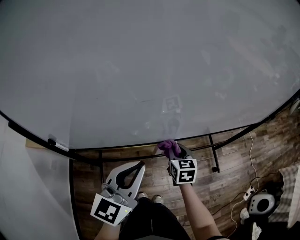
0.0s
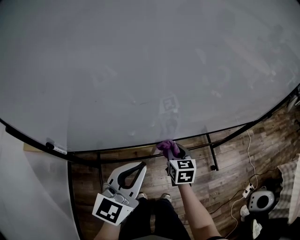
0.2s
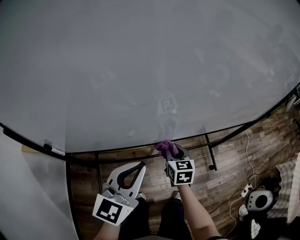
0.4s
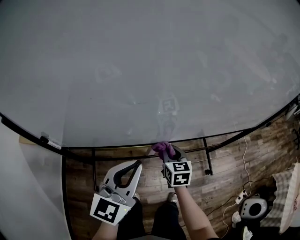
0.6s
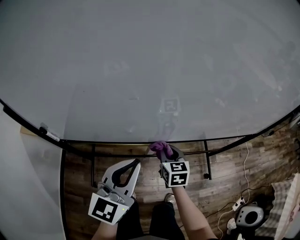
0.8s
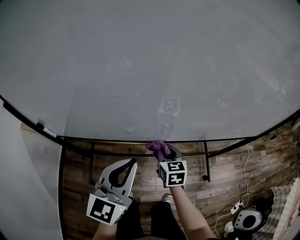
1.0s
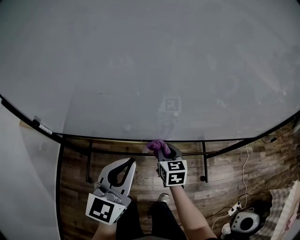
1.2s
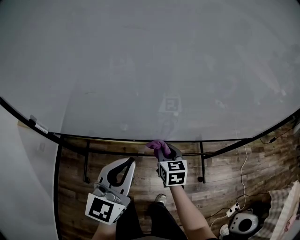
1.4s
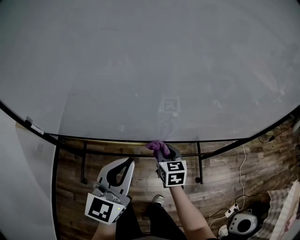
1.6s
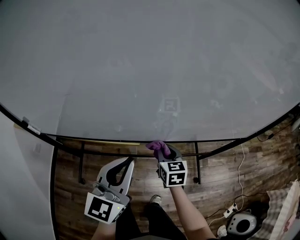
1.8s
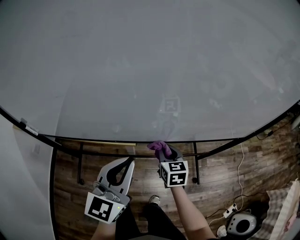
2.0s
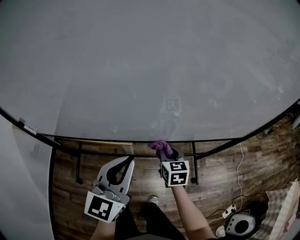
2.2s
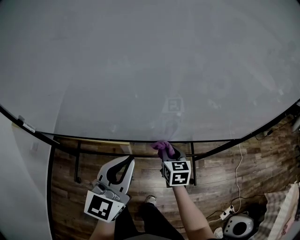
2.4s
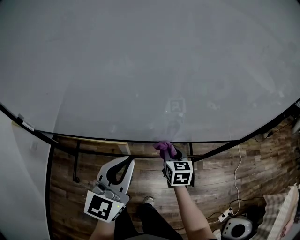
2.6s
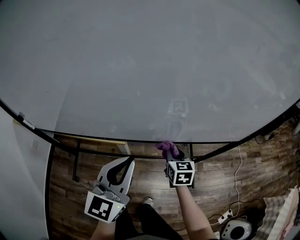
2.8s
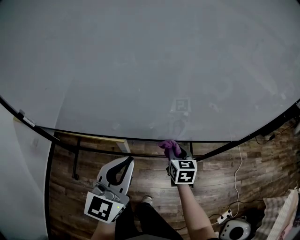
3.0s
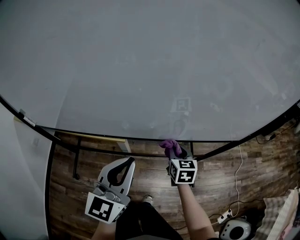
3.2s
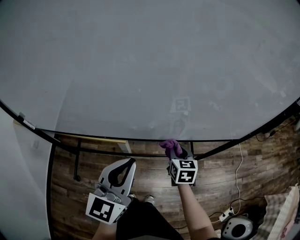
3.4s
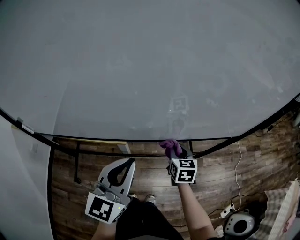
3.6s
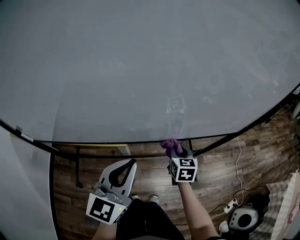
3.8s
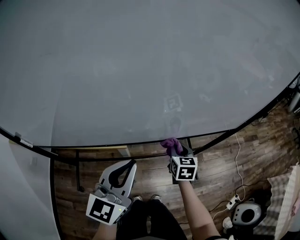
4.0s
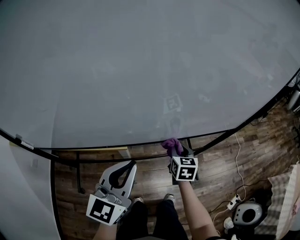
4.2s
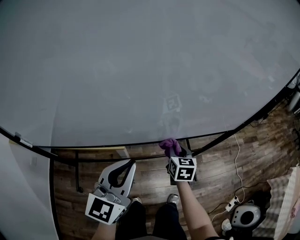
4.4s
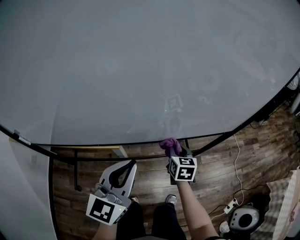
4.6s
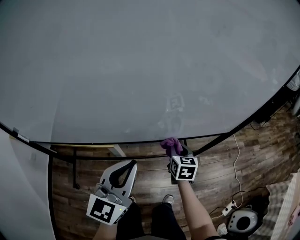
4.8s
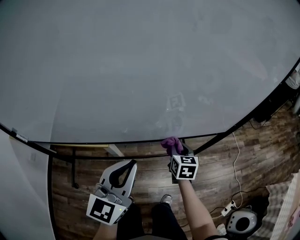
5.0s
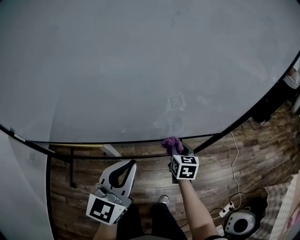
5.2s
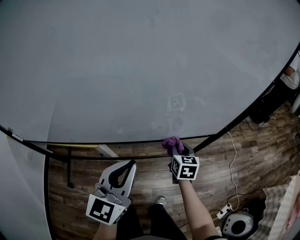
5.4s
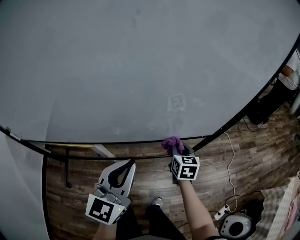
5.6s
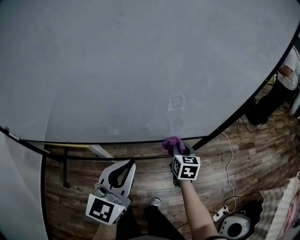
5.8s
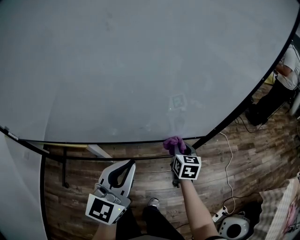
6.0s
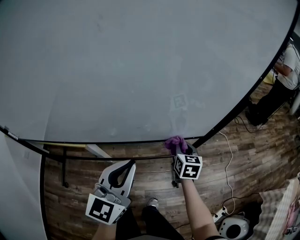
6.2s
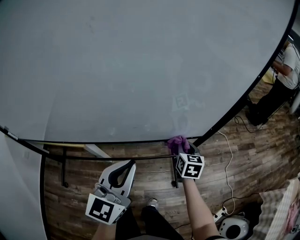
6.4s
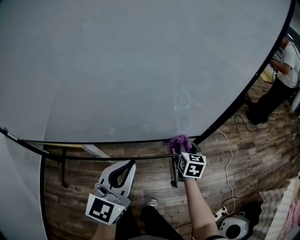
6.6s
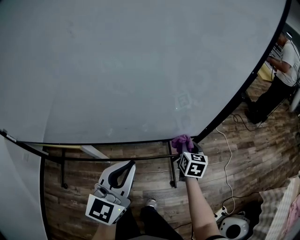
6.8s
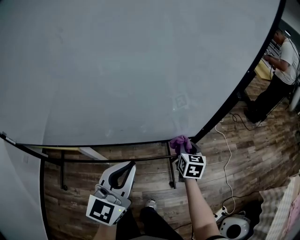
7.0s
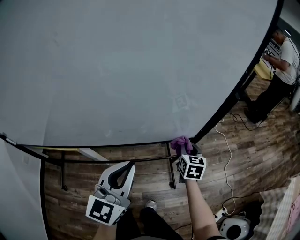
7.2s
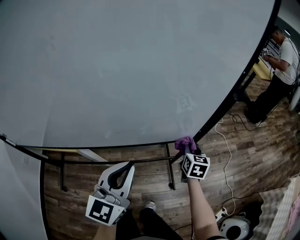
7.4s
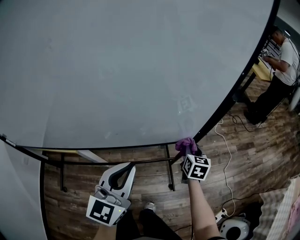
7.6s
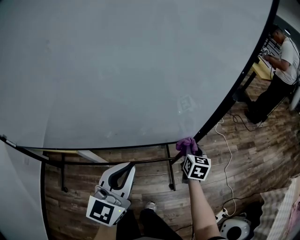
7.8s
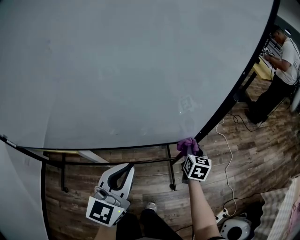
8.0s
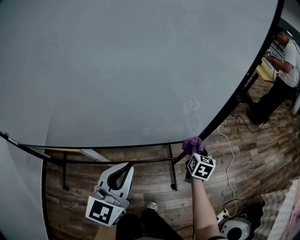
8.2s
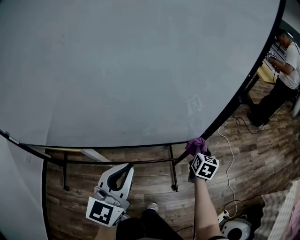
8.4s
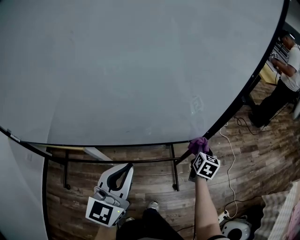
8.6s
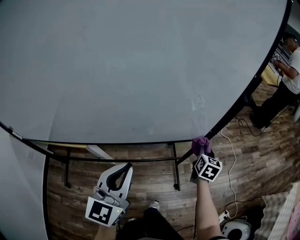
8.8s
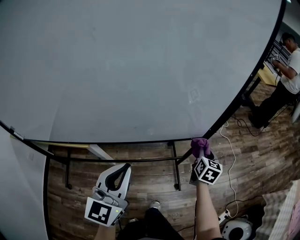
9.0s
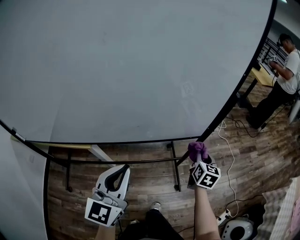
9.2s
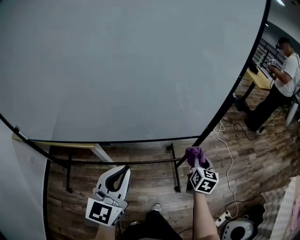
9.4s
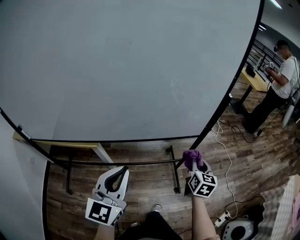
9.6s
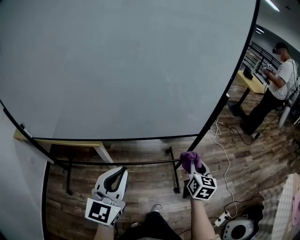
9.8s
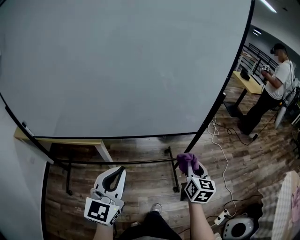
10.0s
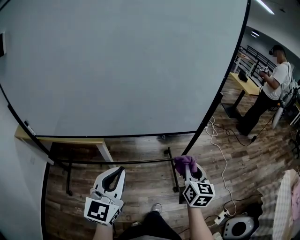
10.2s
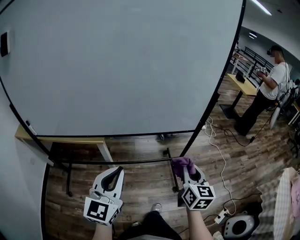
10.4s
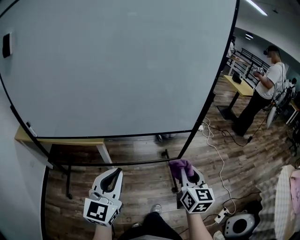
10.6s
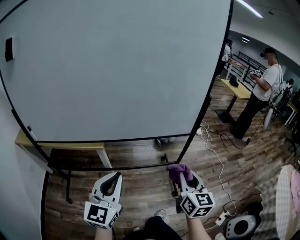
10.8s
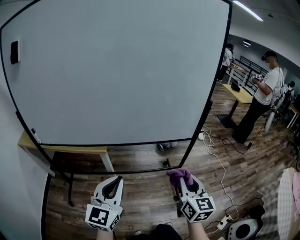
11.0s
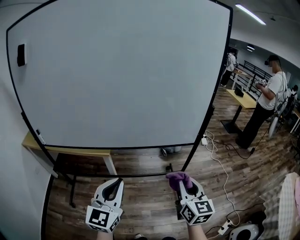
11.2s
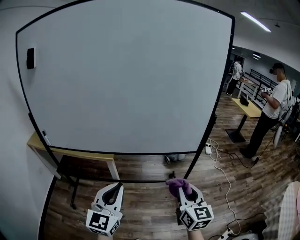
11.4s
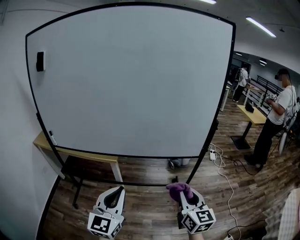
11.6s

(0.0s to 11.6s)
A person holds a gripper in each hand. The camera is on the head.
0.0s - 1.4s: The left gripper goes approximately 5 cm to the right.
1.4s - 2.8s: The grippers both shift to the right by roughly 20 cm.
2.8s - 4.4s: The grippers make only small movements.
4.4s - 5.8s: The two grippers go about 20 cm to the right.
5.8s - 7.2s: The two grippers go some 10 cm to the right.
7.2s - 8.8s: The right gripper travels to the right by some 5 cm.
8.8s - 10.2s: The right gripper shifts about 30 cm backward and upward, and turns by approximately 20 degrees. Meanwhile the left gripper heads backward, covering about 20 cm.
10.2s - 11.6s: The right gripper is displaced backward and upward by some 15 cm, and changes its angle by roughly 20 degrees. Meanwhile the left gripper travels backward by about 10 cm.

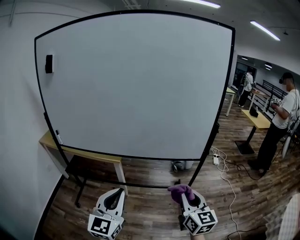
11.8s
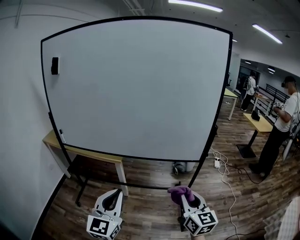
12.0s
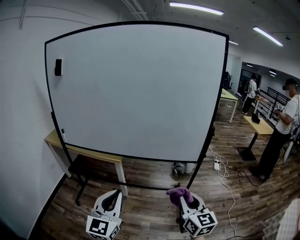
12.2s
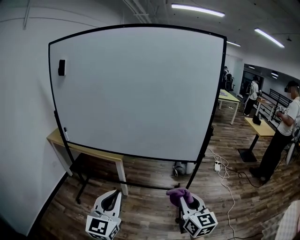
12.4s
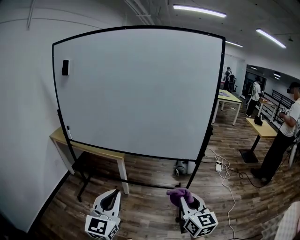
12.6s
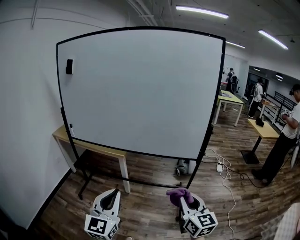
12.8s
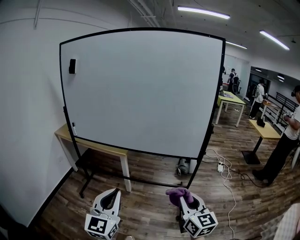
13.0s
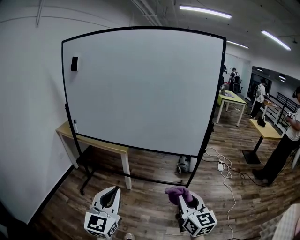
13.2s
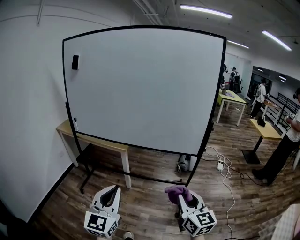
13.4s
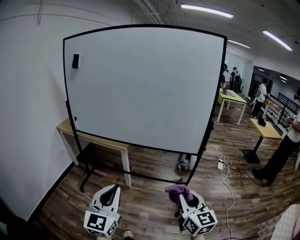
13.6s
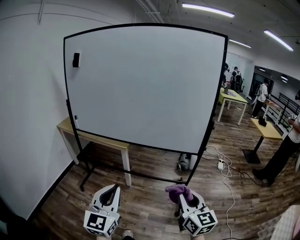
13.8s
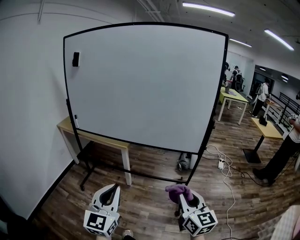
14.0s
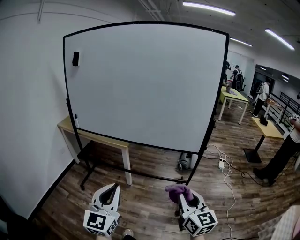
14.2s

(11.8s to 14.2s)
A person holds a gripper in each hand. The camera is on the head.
11.8s - 13.0s: Both grippers travel together backward, approximately 15 cm.
13.0s - 14.2s: The grippers stay close to where they were, moving slightly.

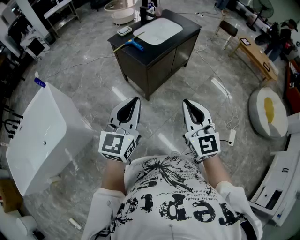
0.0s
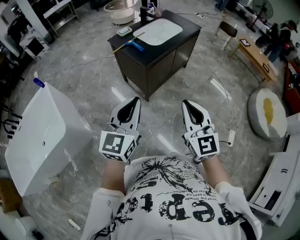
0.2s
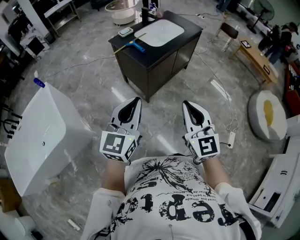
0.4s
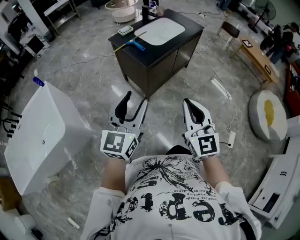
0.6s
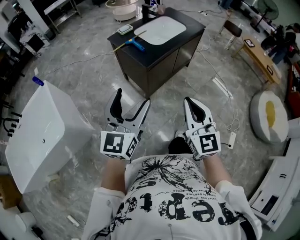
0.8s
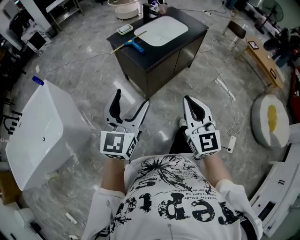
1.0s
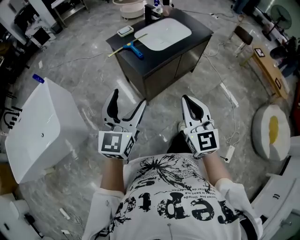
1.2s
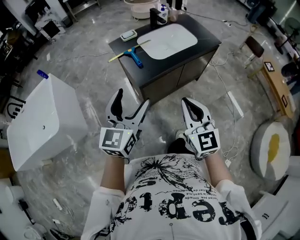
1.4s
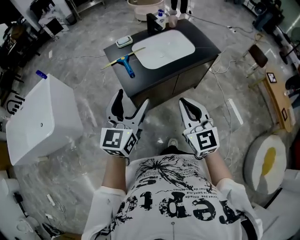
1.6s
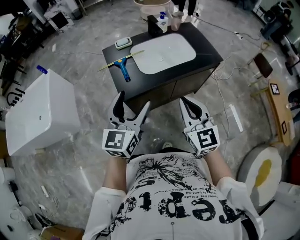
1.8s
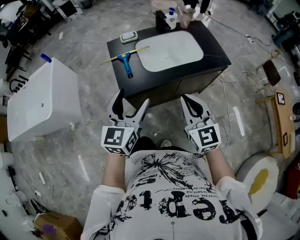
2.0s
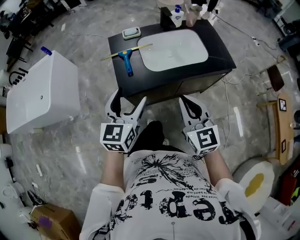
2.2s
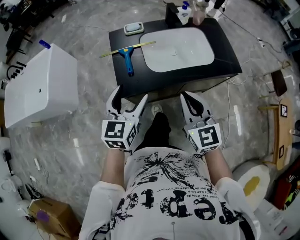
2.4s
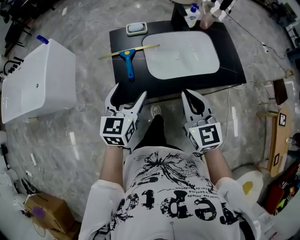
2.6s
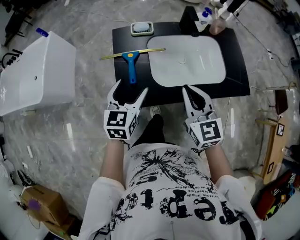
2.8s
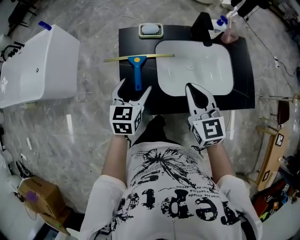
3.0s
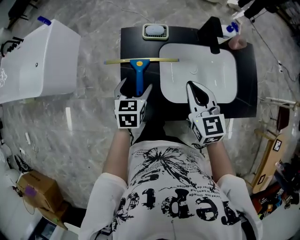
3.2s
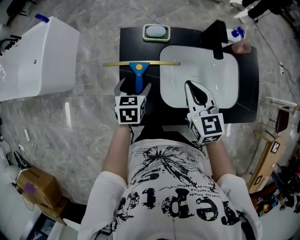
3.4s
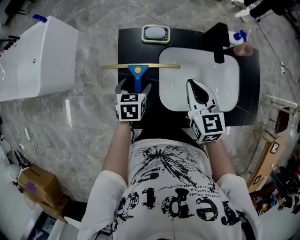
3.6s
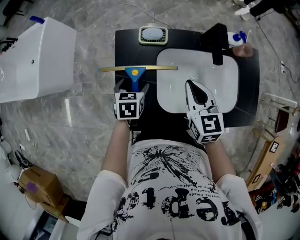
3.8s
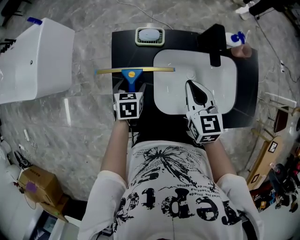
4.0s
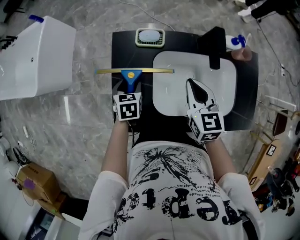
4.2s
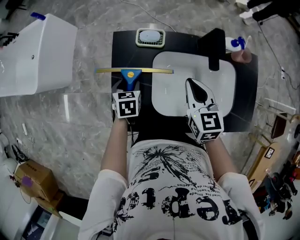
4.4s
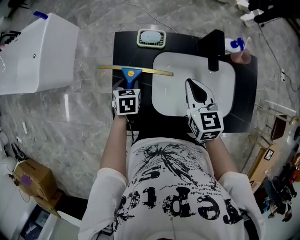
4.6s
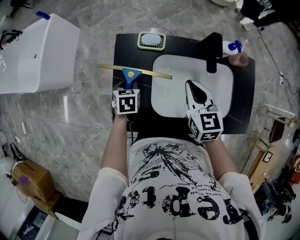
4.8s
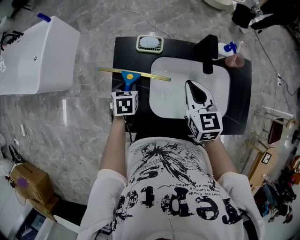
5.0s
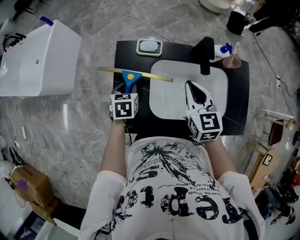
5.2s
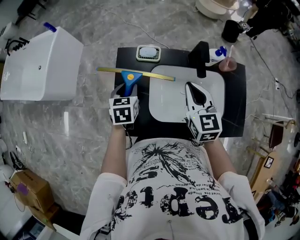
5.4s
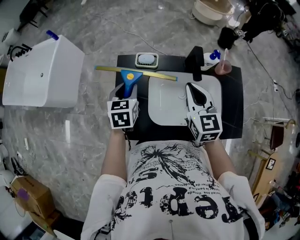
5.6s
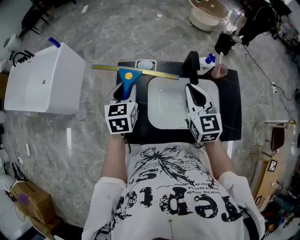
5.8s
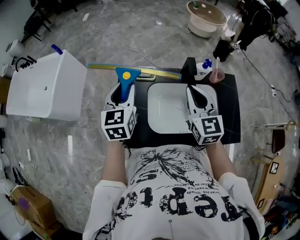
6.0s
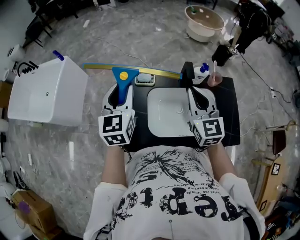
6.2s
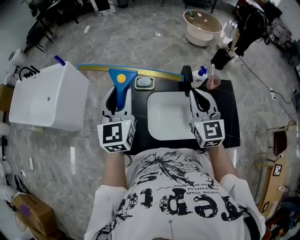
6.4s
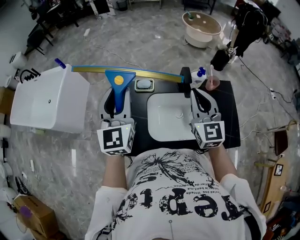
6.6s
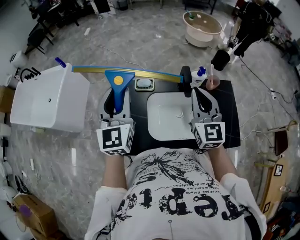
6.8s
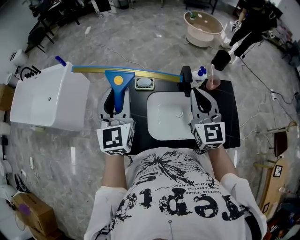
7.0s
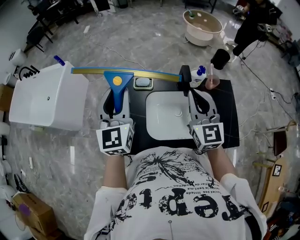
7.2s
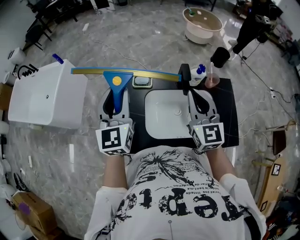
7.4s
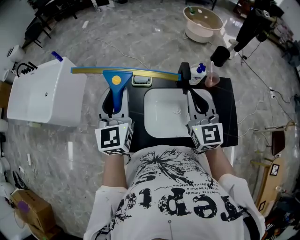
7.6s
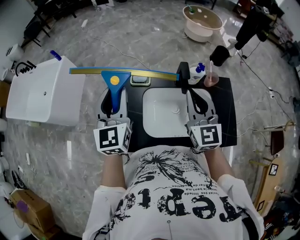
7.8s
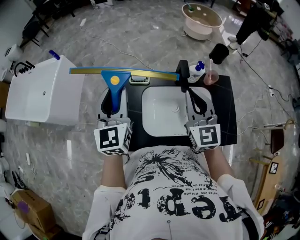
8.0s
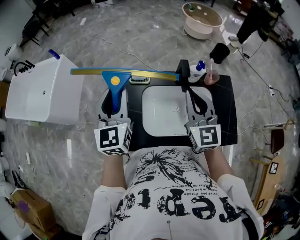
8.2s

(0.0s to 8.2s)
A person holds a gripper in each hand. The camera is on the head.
0.0s - 1.6s: The two grippers go roughly 40 cm forward and to the right. The left gripper swivels about 20 degrees, and opens up. Meanwhile the right gripper rotates about 20 degrees.
1.6s - 3.2s: The two grippers travel together, approximately 40 cm. The right gripper changes its angle by about 30 degrees; the left gripper tilts its fingers approximately 40 degrees downward.
3.2s - 5.0s: The right gripper moves forward and to the right, some 10 cm. Meanwhile the left gripper goes some 10 cm downward and forward, changes its angle by about 20 degrees, and closes up.
5.0s - 6.6s: The right gripper heads upward, covering approximately 20 cm, and rotates some 30 degrees. Meanwhile the left gripper shifts approximately 40 cm upward, and tips its fingers upward by about 60 degrees.
6.6s - 8.2s: The left gripper goes about 5 cm downward.

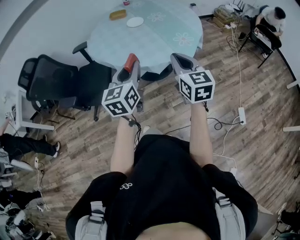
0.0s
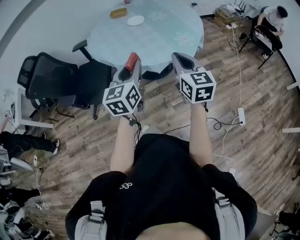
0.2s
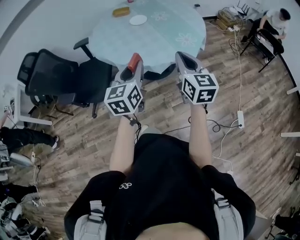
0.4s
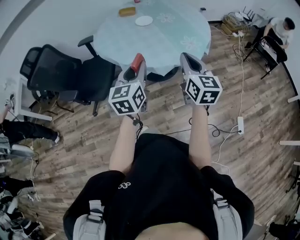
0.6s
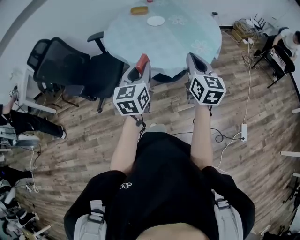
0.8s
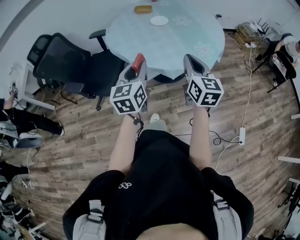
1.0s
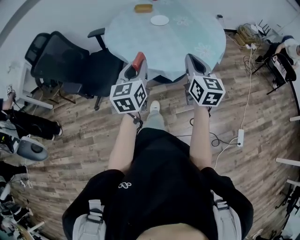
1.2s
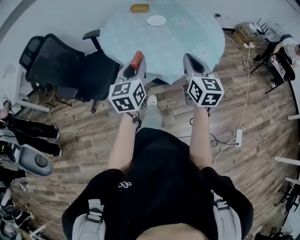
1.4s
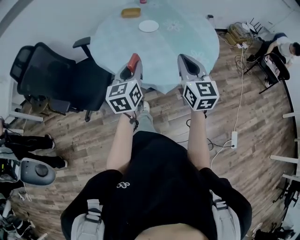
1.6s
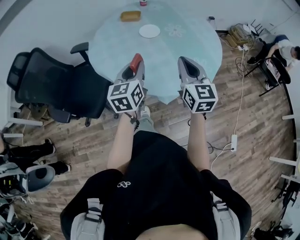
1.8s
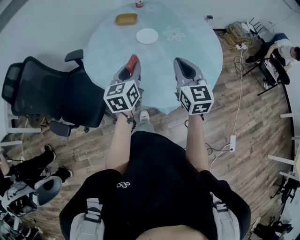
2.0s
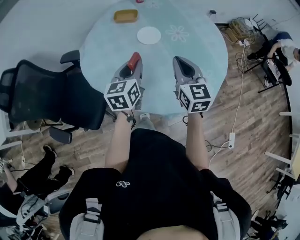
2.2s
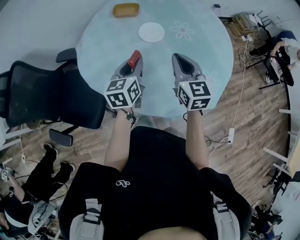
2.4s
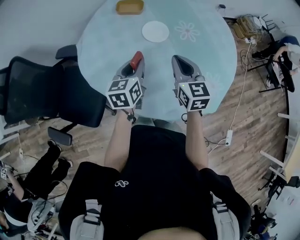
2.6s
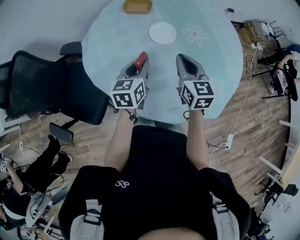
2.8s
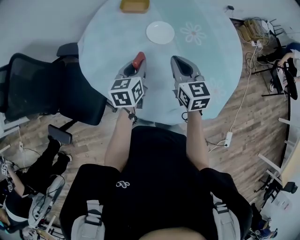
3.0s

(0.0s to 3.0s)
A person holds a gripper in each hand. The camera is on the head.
0.0s - 1.6s: The grippers both shift forward by about 20 cm.
1.6s - 3.0s: The two grippers go roughly 35 cm forward. The right gripper changes its angle by approximately 20 degrees, while the left gripper changes its angle by about 20 degrees.
